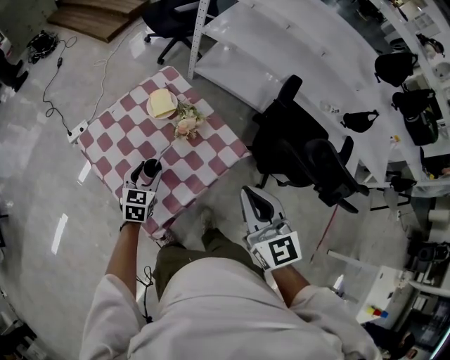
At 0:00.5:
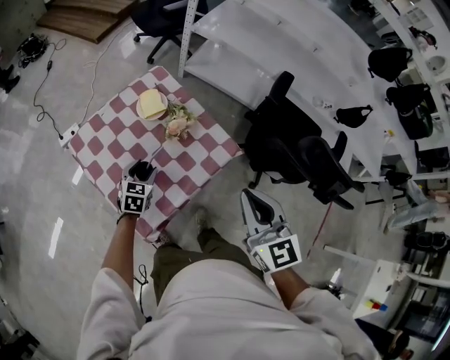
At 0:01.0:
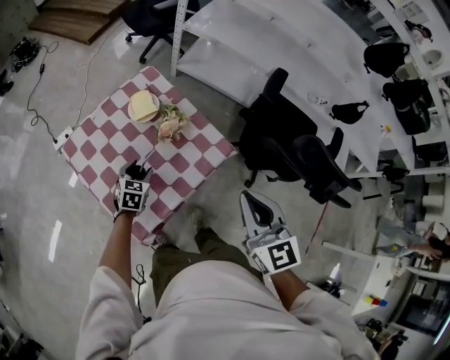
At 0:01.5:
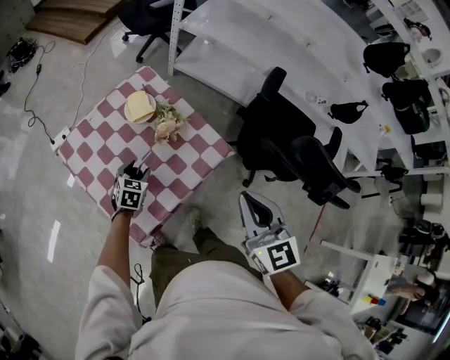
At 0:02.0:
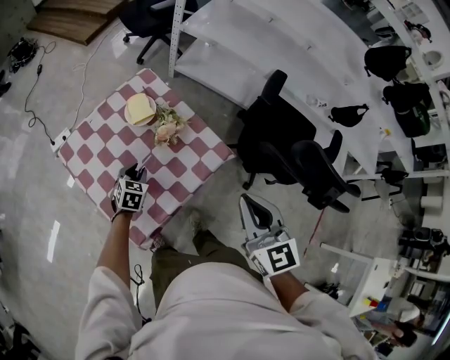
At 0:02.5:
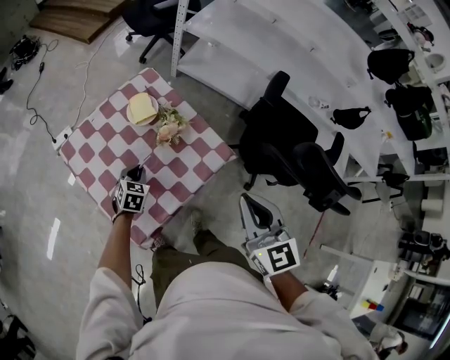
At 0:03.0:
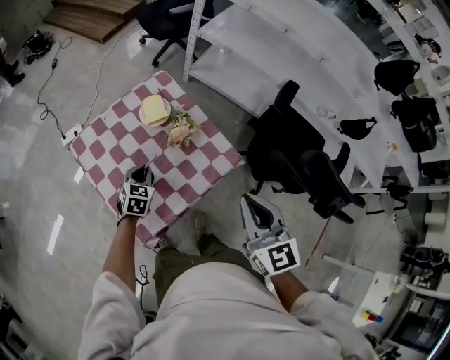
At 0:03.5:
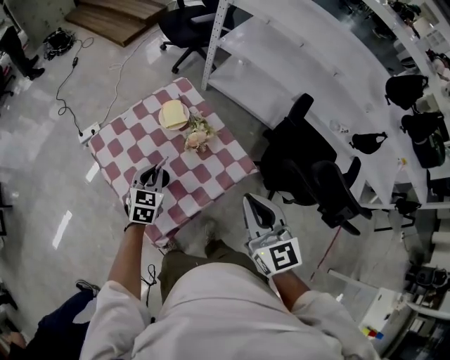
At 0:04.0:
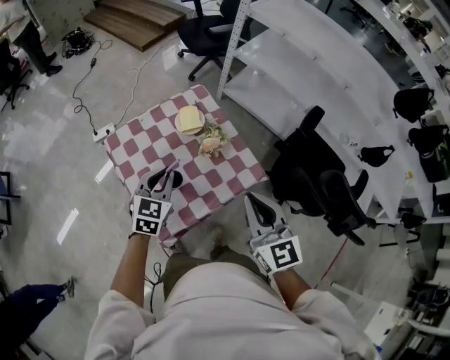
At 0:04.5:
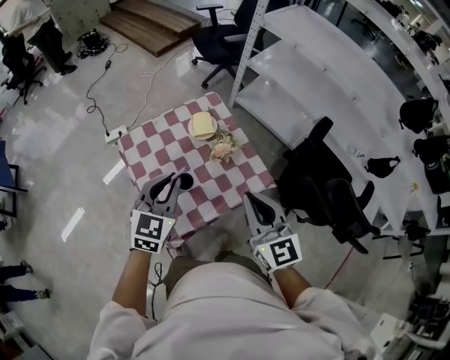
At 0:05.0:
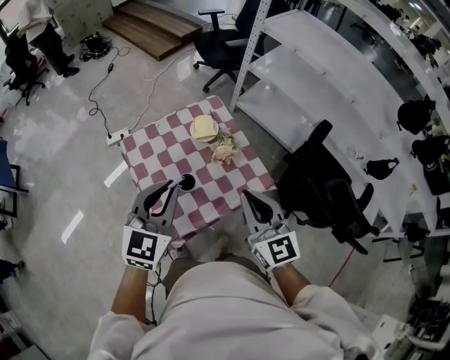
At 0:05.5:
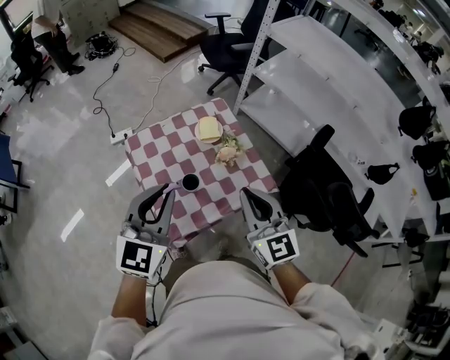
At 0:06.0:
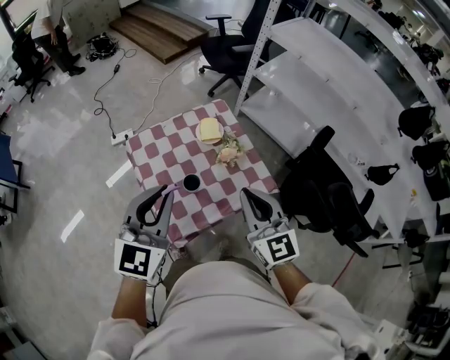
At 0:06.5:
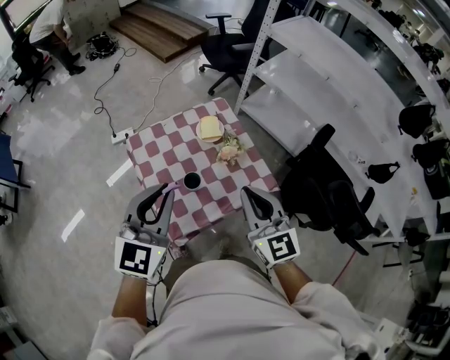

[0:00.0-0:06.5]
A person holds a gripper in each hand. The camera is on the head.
0:00.0 to 0:02.0: The left gripper is displaced downward by about 10 cm, and closes its fingers, while the right gripper moves approximately 5 cm.
0:02.0 to 0:04.5: The left gripper travels upward by some 30 cm, and tips its fingers upward by roughly 30 degrees; the right gripper goes roughly 10 cm to the left.
0:04.5 to 0:06.5: The left gripper is displaced upward and backward by some 15 cm.

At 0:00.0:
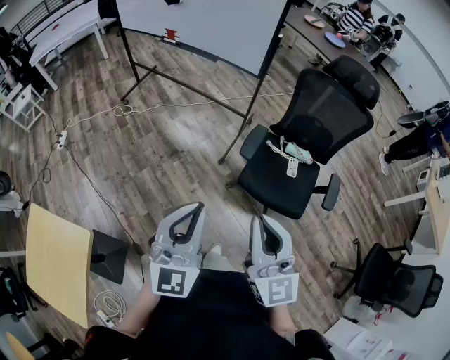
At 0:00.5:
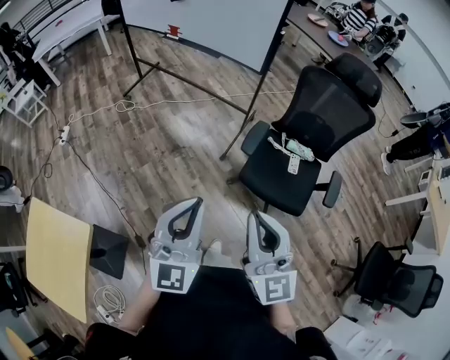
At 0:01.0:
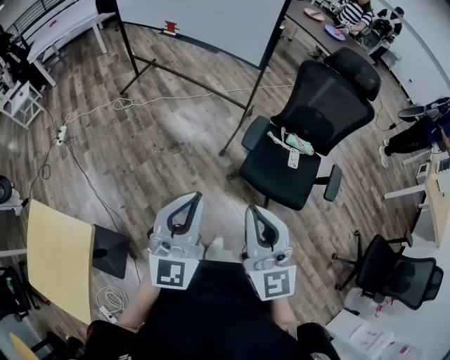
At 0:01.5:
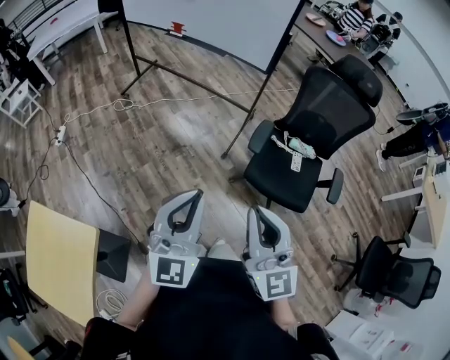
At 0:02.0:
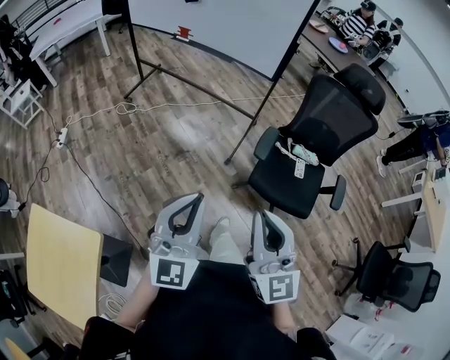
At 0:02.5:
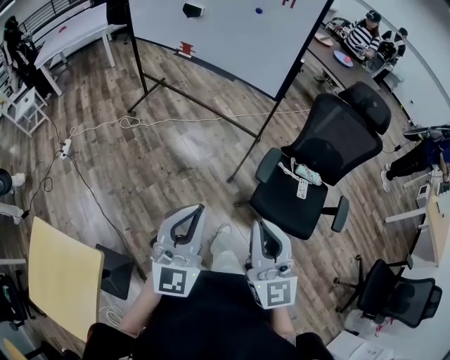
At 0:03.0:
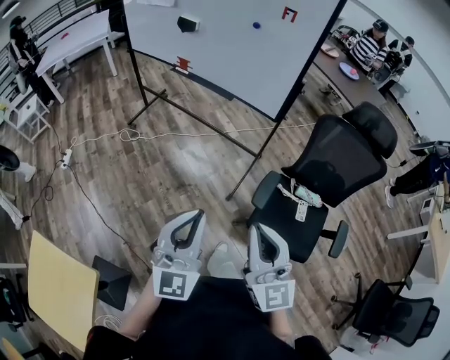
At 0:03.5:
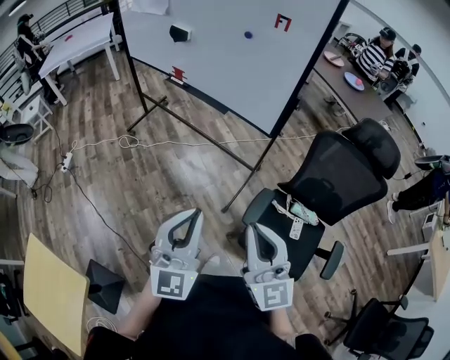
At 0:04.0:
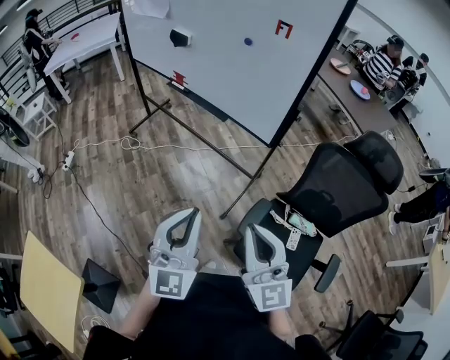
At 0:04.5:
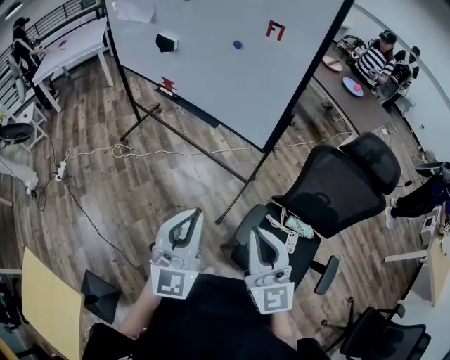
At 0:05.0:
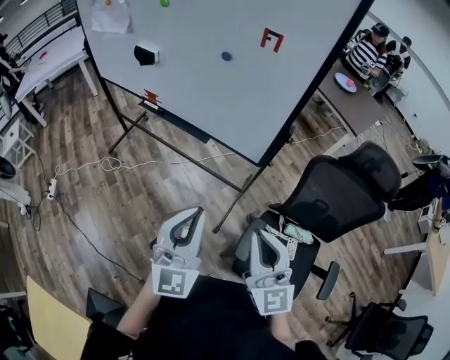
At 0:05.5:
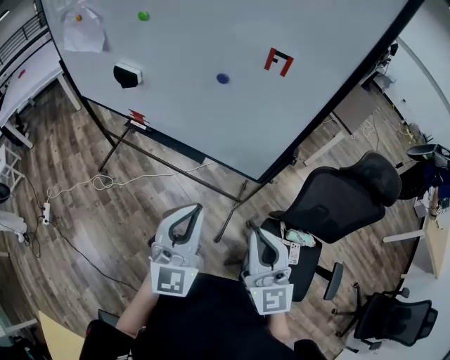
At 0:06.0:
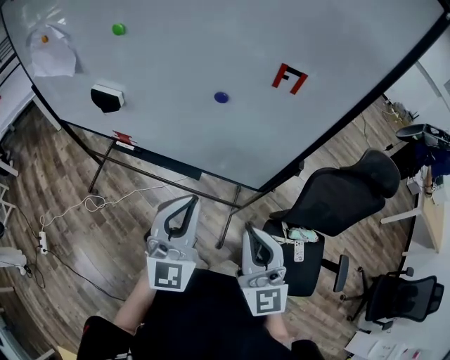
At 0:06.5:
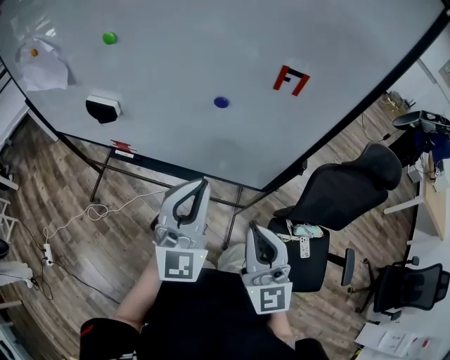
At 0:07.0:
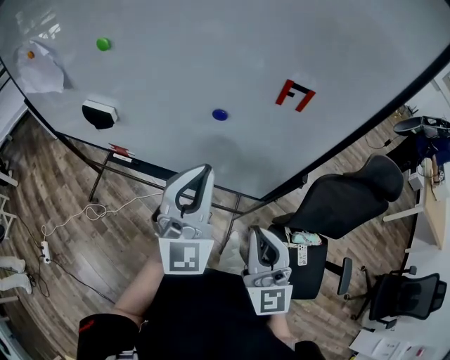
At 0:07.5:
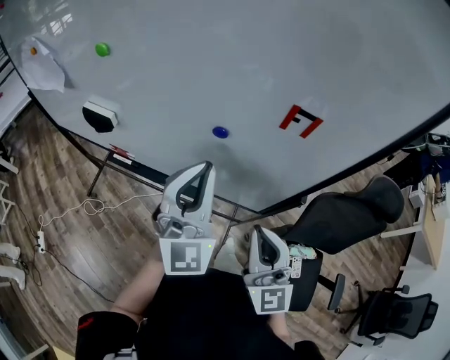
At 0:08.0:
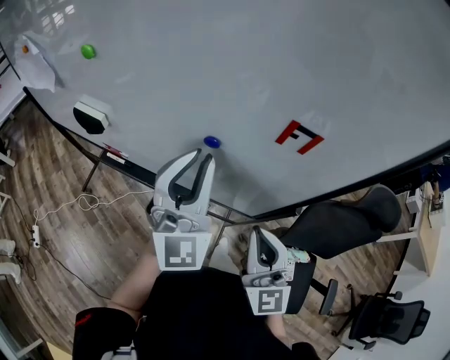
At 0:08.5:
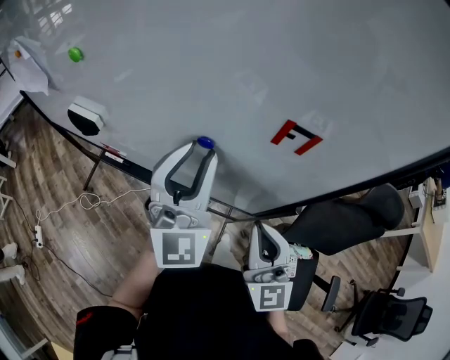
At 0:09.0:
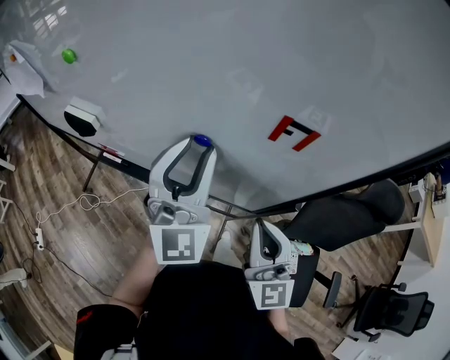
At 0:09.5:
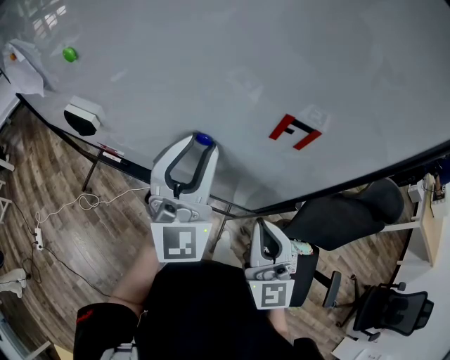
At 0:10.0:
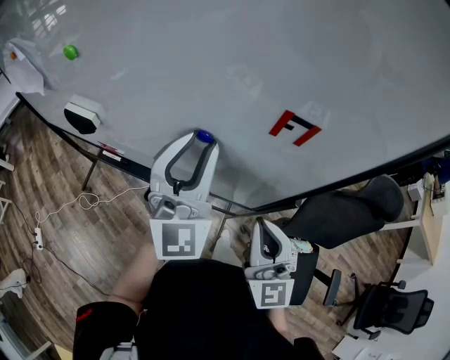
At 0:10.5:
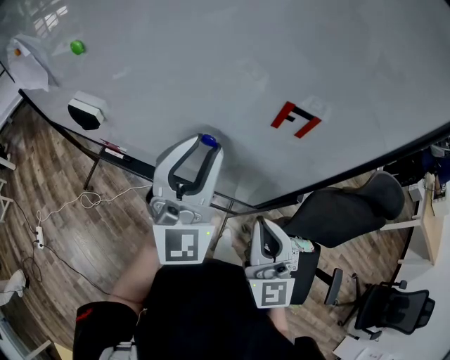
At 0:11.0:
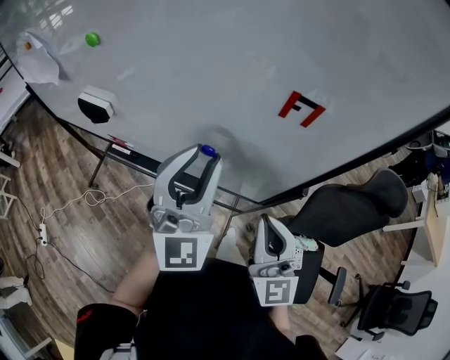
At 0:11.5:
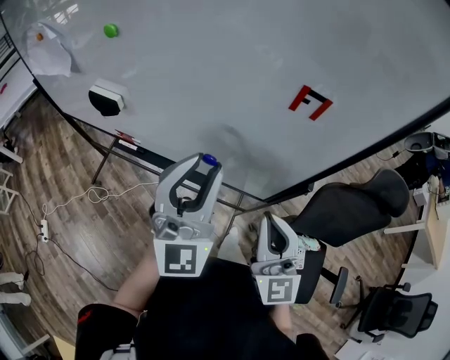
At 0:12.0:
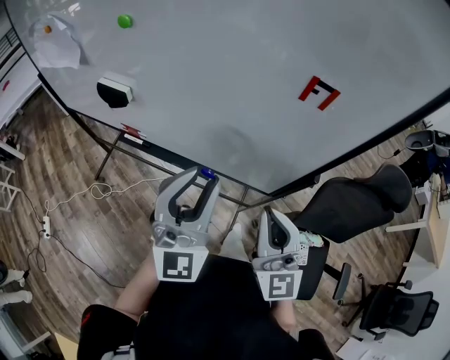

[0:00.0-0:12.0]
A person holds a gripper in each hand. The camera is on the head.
0:00.0 to 0:02.0: Both grippers travel together to the left, roughly 10 cm.
0:02.0 to 0:04.0: Both grippers move forward, approximately 30 cm.
0:04.0 to 0:06.0: Both grippers move forward, approximately 35 cm. The left gripper rotates roughly 20 degrees. The right gripper rotates about 20 degrees.
0:06.0 to 0:08.0: Both grippers travel together forward, roughly 15 cm.
0:08.0 to 0:10.0: The grippers stay close to where they were, moving slightly.
0:10.0 to 0:12.0: The right gripper shifts about 5 cm backward. The left gripper goes roughly 15 cm backward.

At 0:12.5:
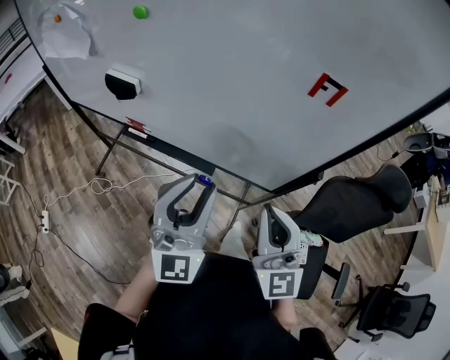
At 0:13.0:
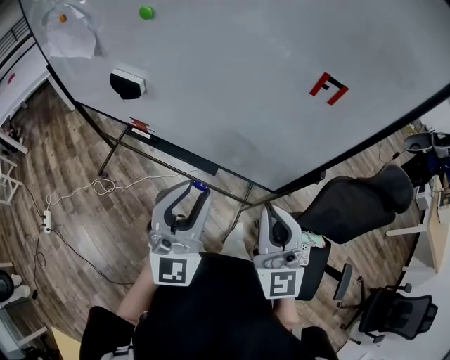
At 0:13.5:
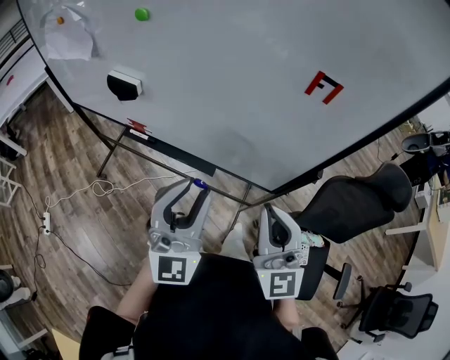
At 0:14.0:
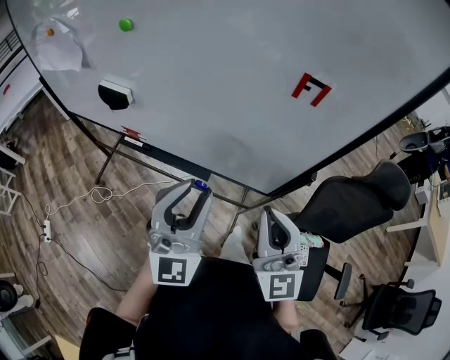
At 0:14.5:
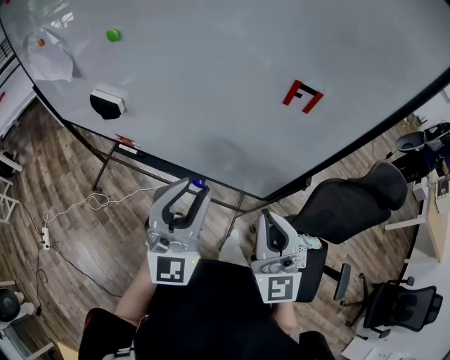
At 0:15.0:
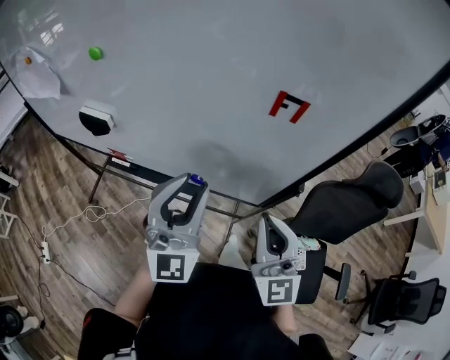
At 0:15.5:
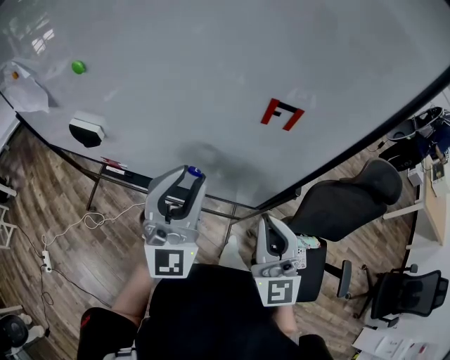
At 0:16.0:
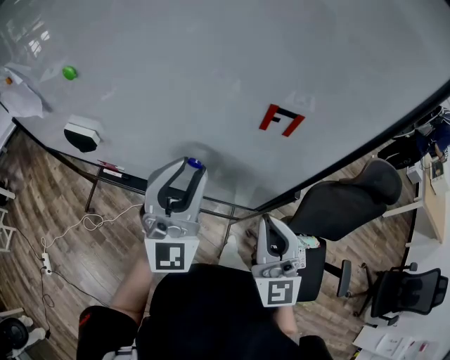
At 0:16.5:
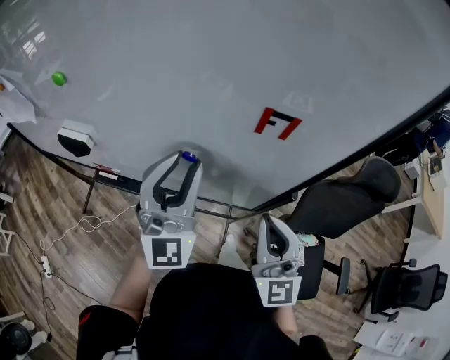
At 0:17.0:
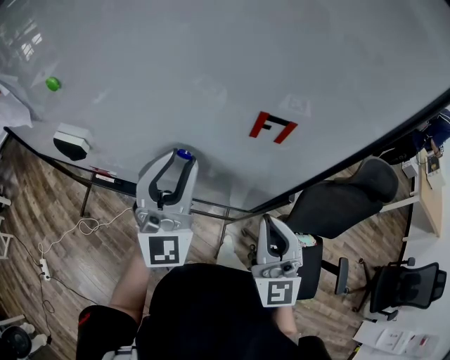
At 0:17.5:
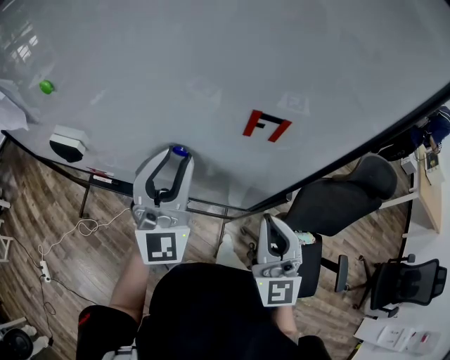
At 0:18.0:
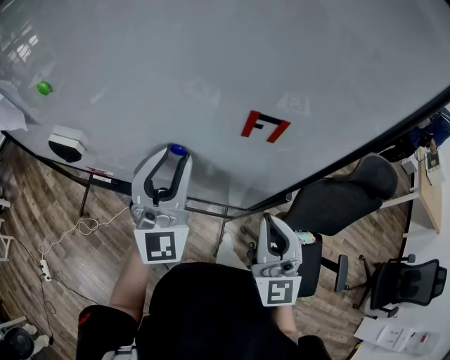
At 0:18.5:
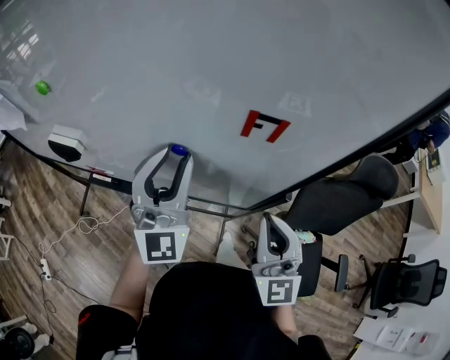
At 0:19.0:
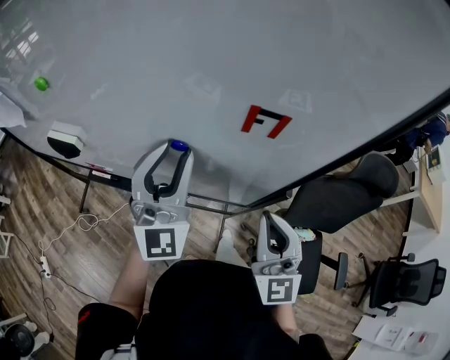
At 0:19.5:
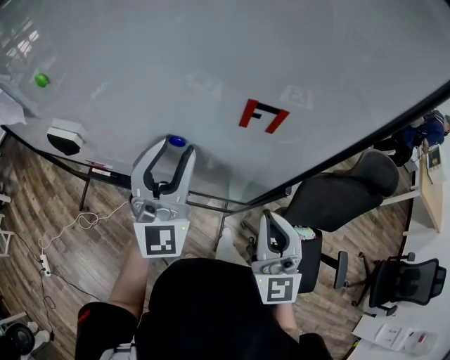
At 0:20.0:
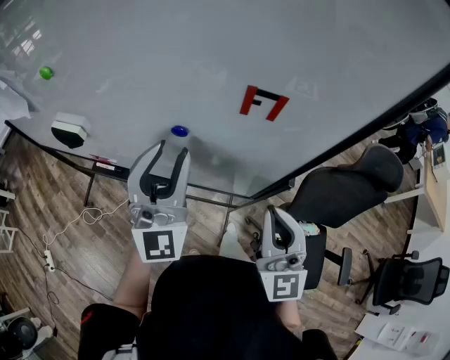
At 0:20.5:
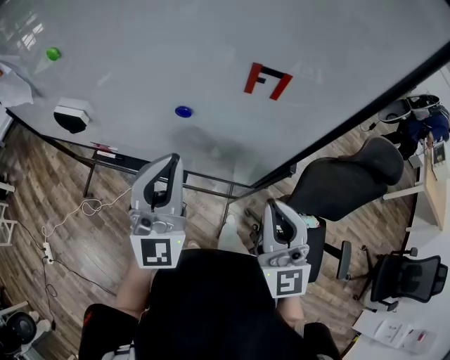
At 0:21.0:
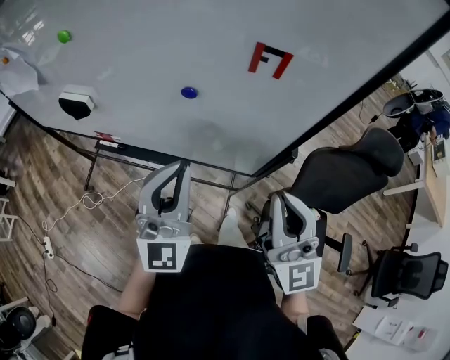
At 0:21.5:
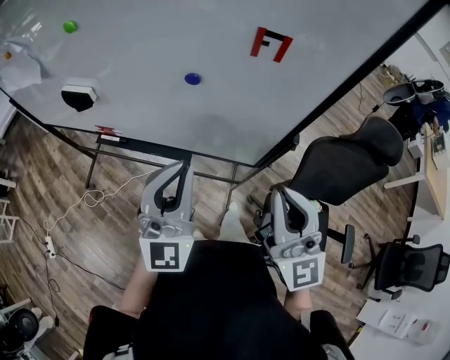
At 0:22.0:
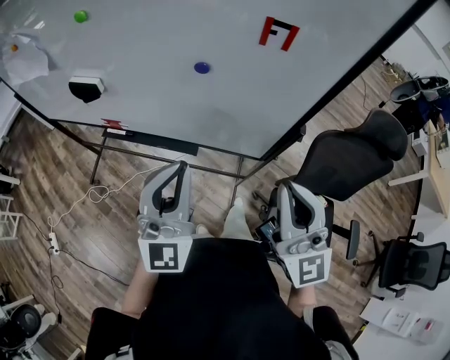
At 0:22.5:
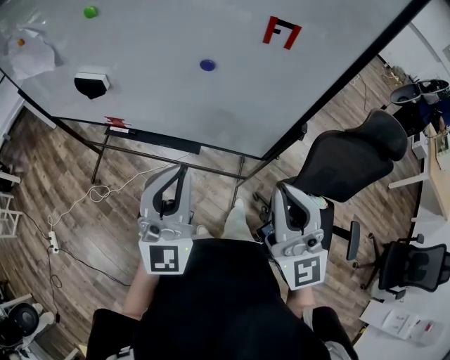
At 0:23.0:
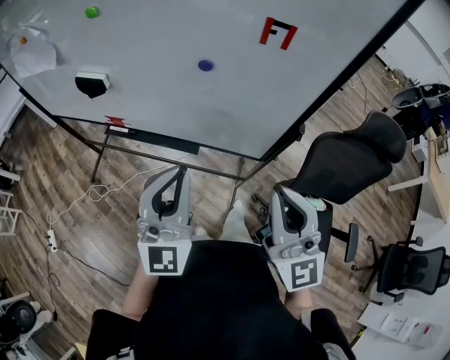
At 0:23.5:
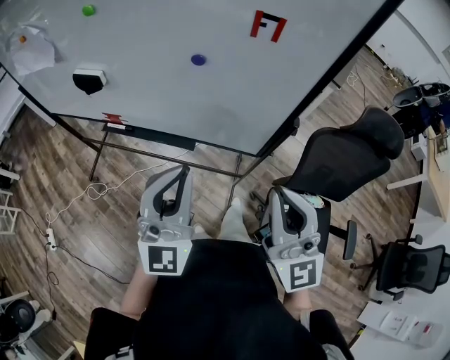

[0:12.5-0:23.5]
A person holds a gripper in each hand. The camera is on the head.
0:12.5 to 0:14.5: The grippers stay close to where they were, moving slightly.
0:14.5 to 0:16.0: The left gripper shifts some 10 cm forward. The right gripper changes place by approximately 5 cm.
0:16.0 to 0:20.0: There are only small adjustments of the grippers.
0:20.0 to 0:21.5: The right gripper shifts about 5 cm backward. Meanwhile the left gripper goes roughly 10 cm backward, and closes up.
0:21.5 to 0:23.5: The grippers both shift backward by about 5 cm.
